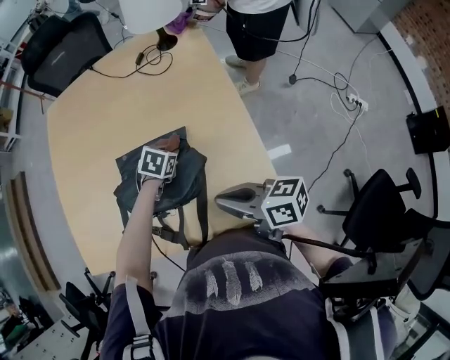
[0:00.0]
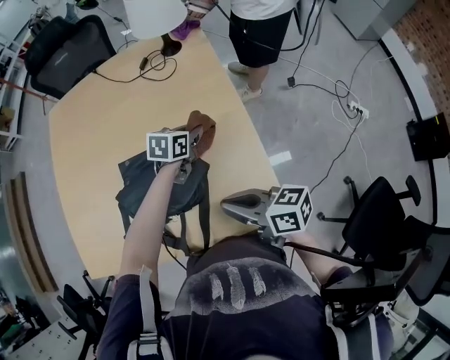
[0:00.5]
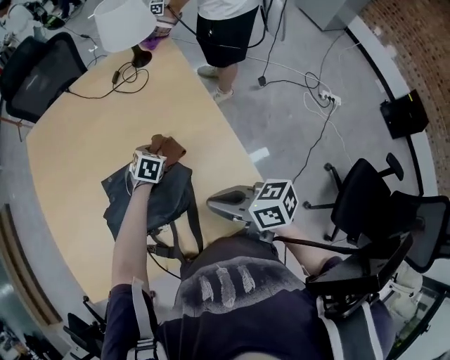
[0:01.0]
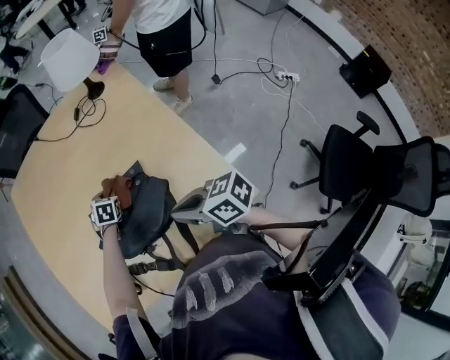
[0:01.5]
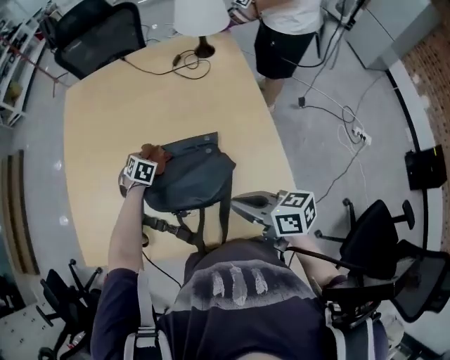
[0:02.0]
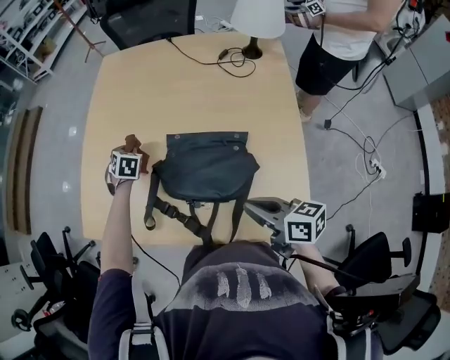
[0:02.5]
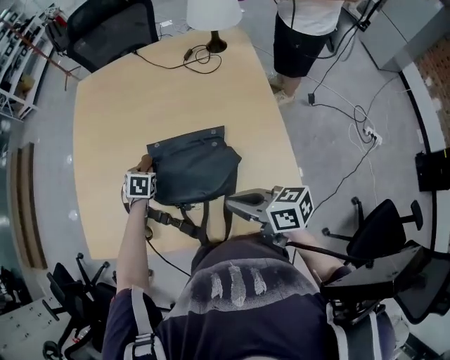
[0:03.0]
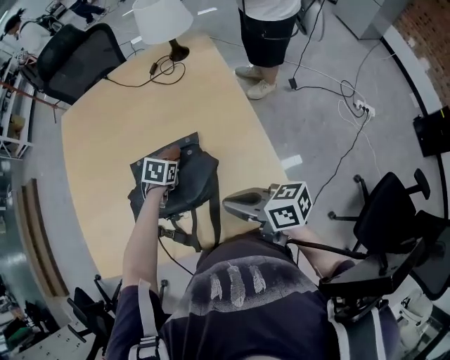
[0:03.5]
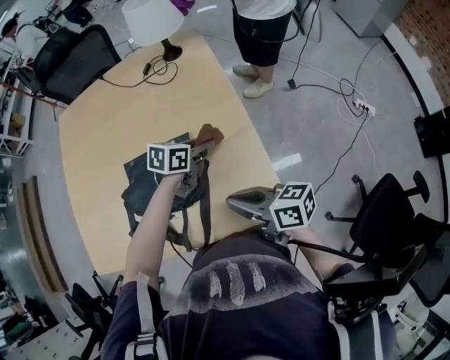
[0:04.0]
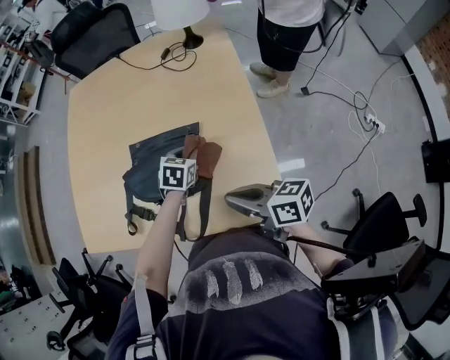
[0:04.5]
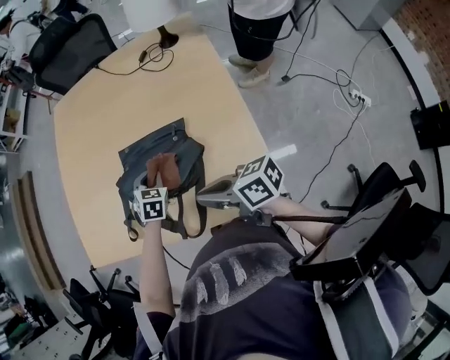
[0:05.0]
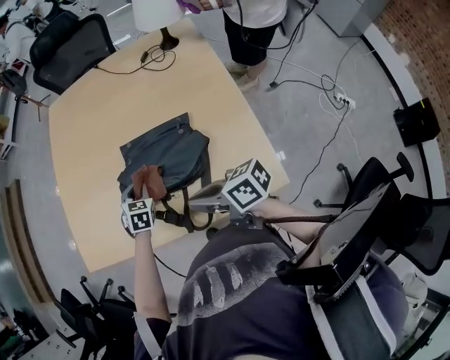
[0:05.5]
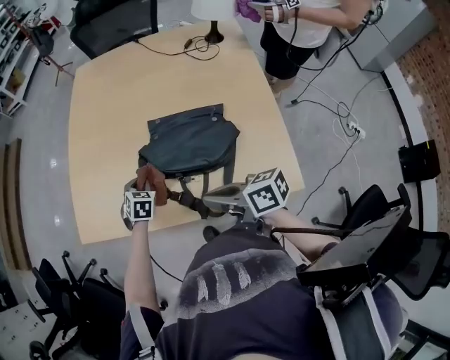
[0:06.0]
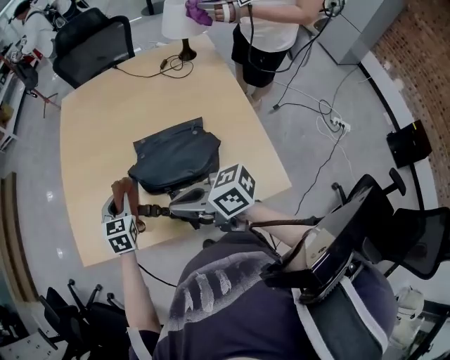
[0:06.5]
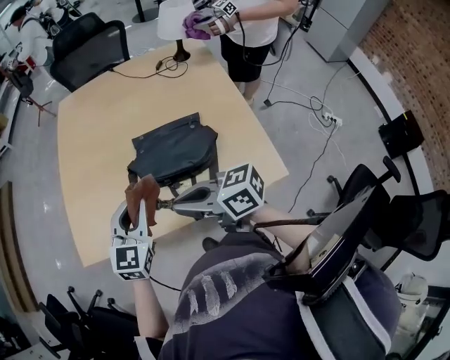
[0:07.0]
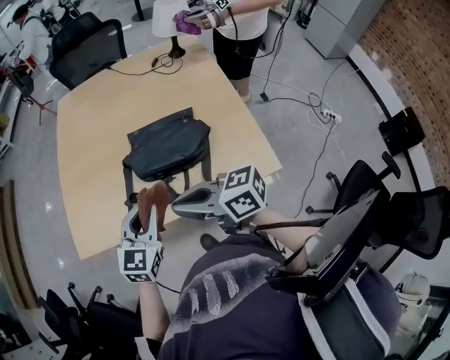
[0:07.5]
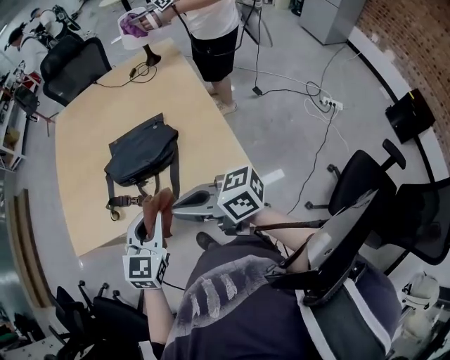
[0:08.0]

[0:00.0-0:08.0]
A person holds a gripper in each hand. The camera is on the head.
0:00.0 to 0:02.0: The left gripper ends up about 25 cm from where it was, and swivels roughly 20 degrees.
0:02.0 to 0:04.0: The right gripper ends up roughly 10 cm from where it was. The left gripper ends up some 40 cm from where it was, and turns by about 50 degrees.
0:04.0 to 0:06.0: The right gripper changes place by about 25 cm, while the left gripper moves approximately 50 cm, and changes its angle by about 50 degrees.
0:06.0 to 0:08.0: The left gripper heads backward, upward and to the right, covering approximately 40 cm, and angles its fingers upward, by roughly 30 degrees, while the right gripper travels backward and upward by about 20 cm, and rotates roughly 20 degrees.

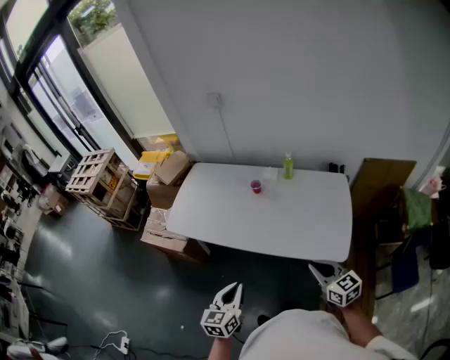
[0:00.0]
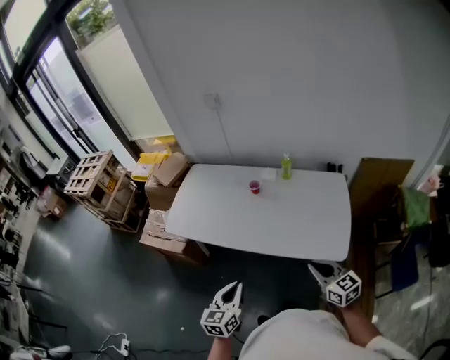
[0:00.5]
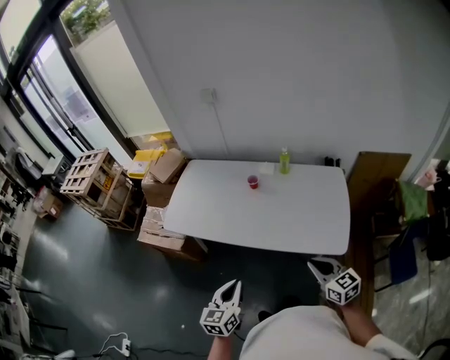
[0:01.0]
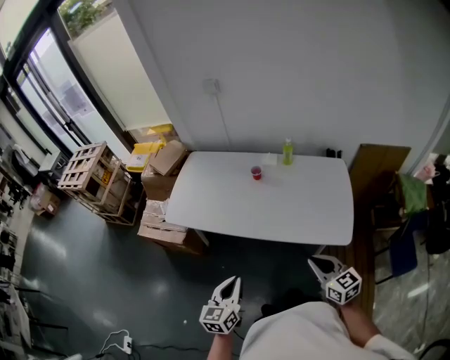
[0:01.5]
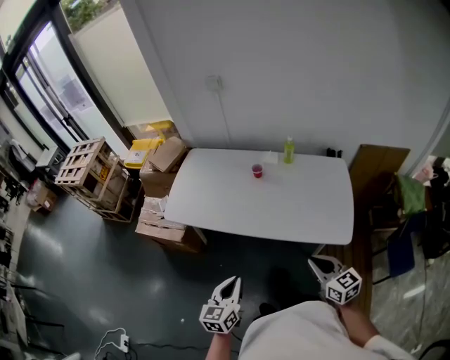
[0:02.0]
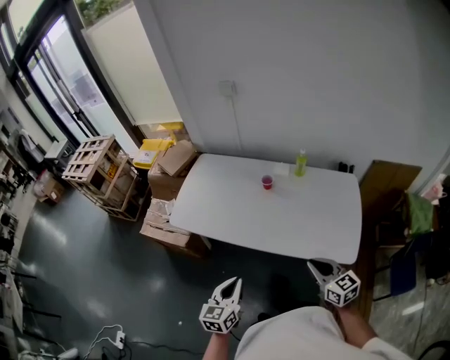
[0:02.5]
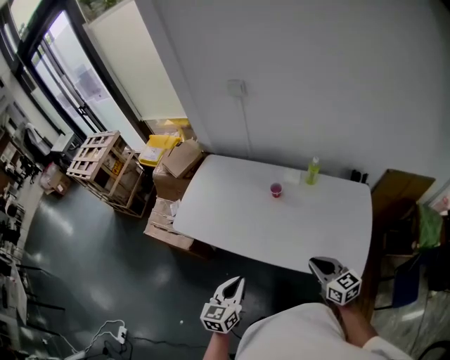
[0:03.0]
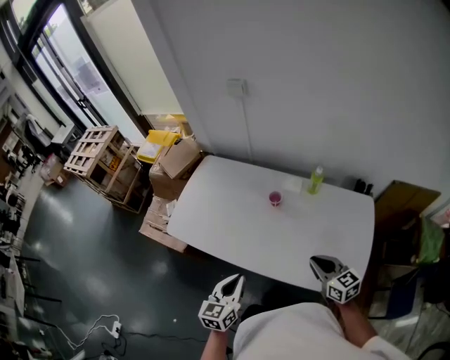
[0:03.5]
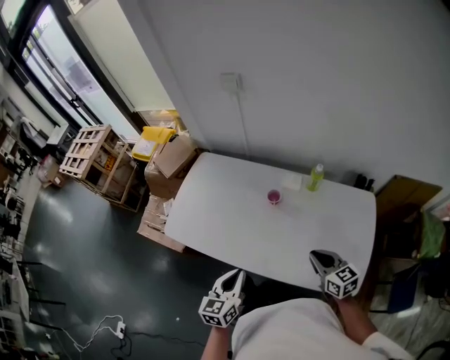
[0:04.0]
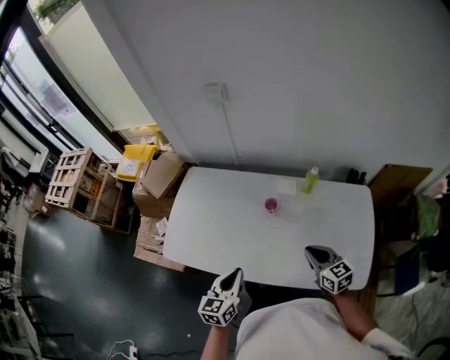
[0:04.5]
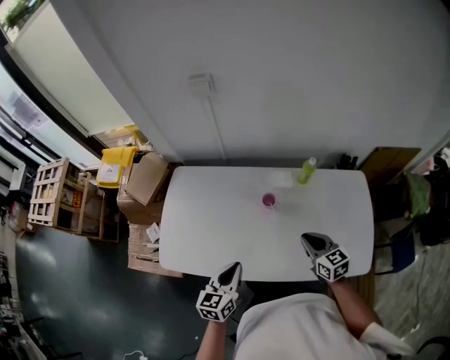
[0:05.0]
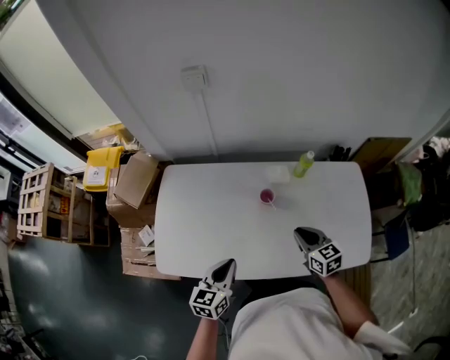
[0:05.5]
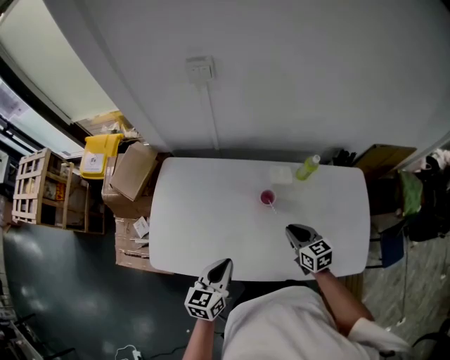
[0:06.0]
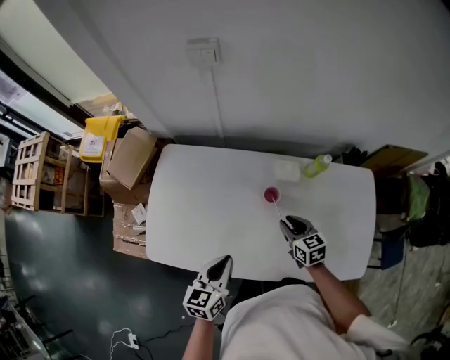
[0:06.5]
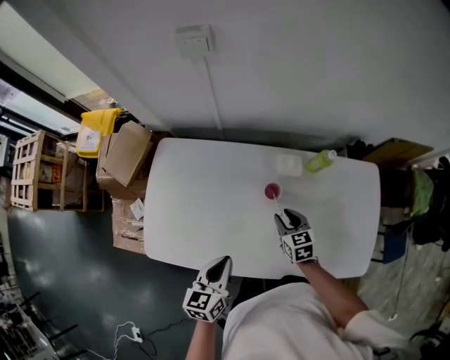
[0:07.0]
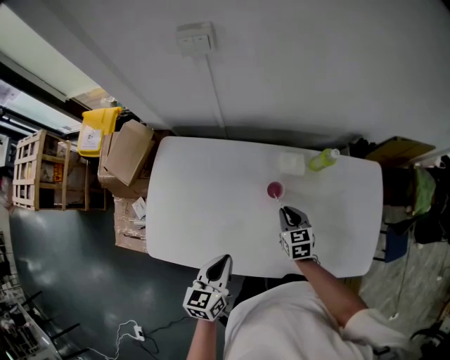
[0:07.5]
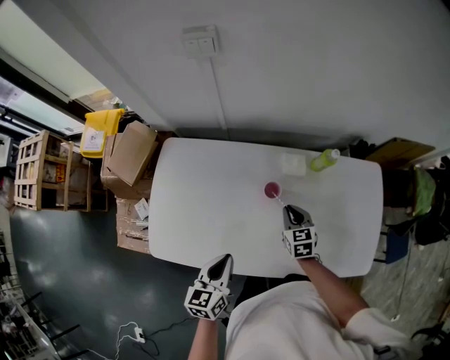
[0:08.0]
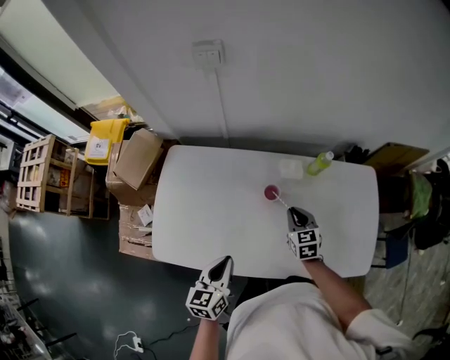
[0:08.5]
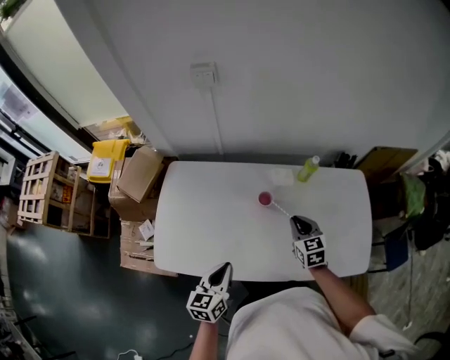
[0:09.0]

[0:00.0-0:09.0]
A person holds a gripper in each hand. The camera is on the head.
0:00.0 to 0:02.0: Both grippers travel together to the left, roughly 5 cm.
0:02.0 to 0:04.5: The grippers both shift forward by roughly 30 cm.
0:04.5 to 0:07.0: The right gripper heads downward, forward and to the left, covering some 25 cm, changes its angle by some 20 degrees, and opens. The left gripper goes some 15 cm forward, downward and to the left.
0:07.0 to 0:09.0: The left gripper shifts roughly 5 cm backward. The right gripper goes some 10 cm upward, and closes.

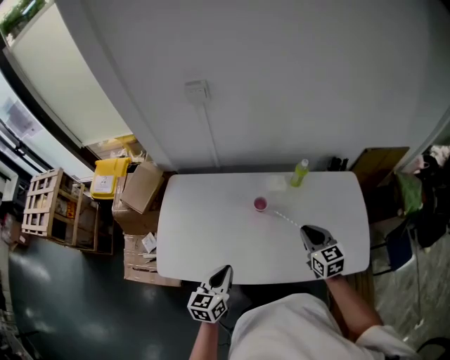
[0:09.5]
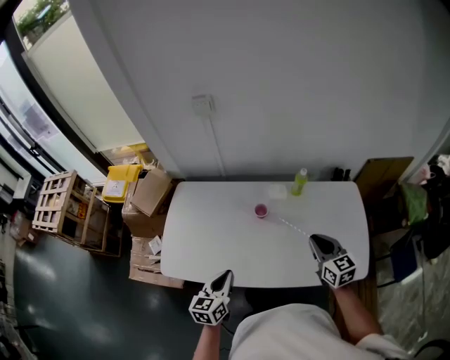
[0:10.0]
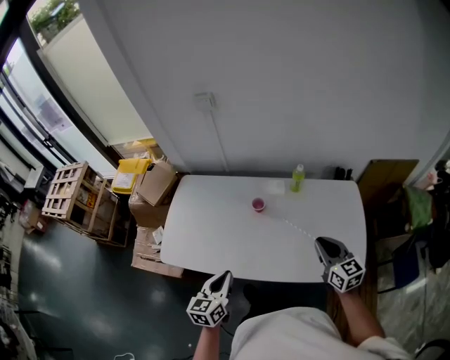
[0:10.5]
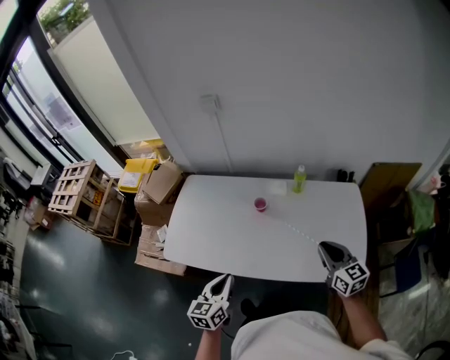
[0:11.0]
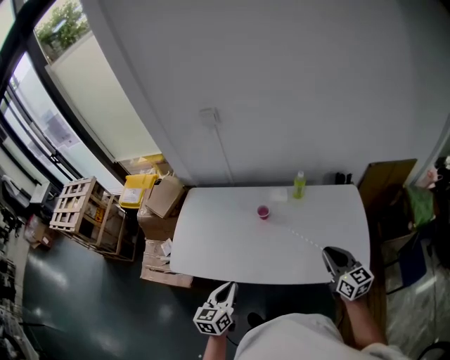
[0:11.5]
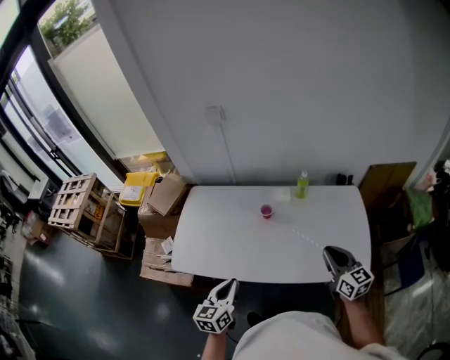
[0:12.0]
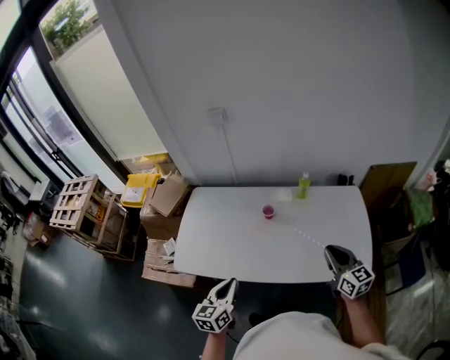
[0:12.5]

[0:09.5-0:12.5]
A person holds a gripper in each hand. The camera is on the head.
0:09.5 to 0:11.0: The grippers both shift backward, to the right and upward by roughly 15 cm.
0:11.0 to 0:12.5: The left gripper changes place by about 5 cm.

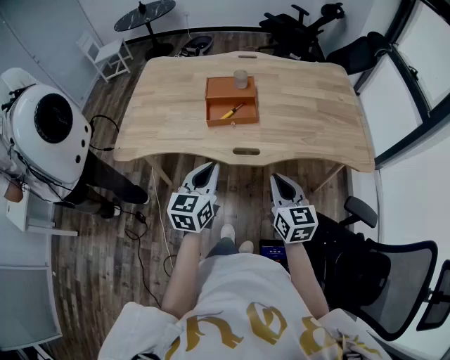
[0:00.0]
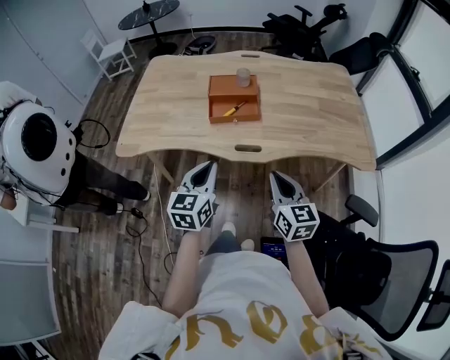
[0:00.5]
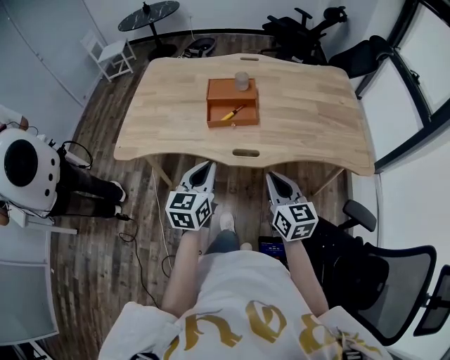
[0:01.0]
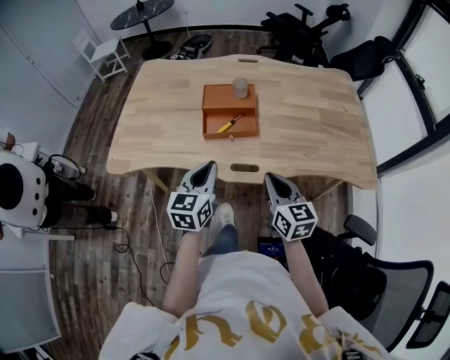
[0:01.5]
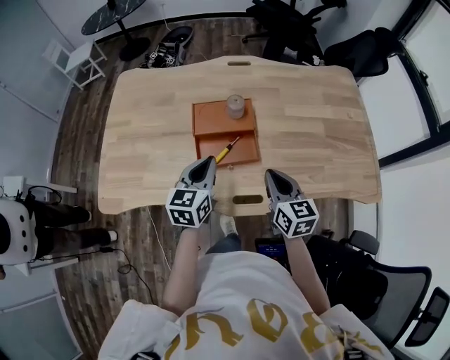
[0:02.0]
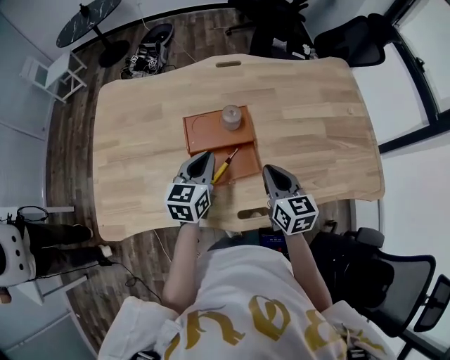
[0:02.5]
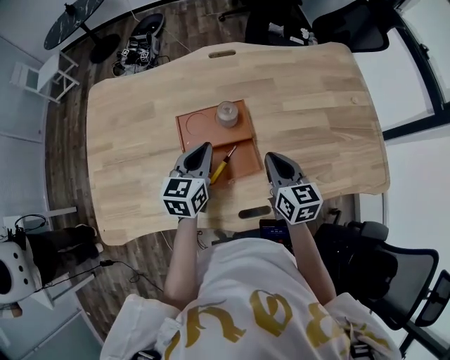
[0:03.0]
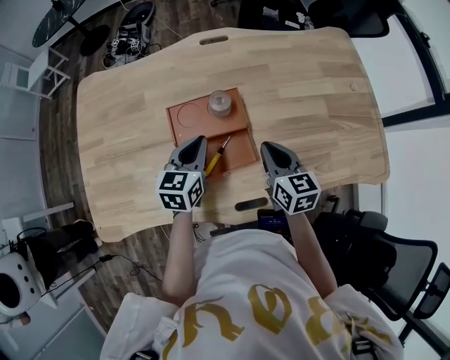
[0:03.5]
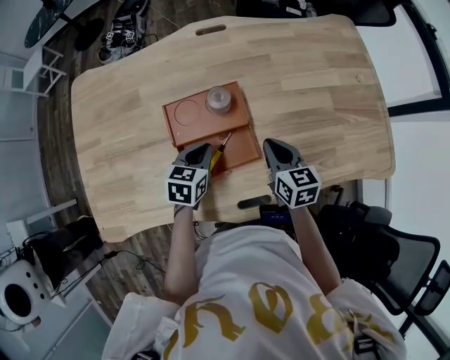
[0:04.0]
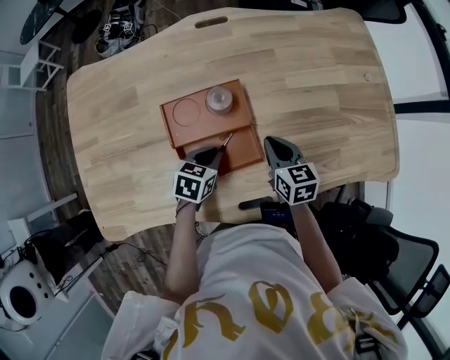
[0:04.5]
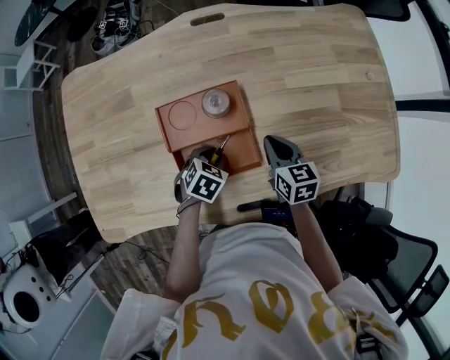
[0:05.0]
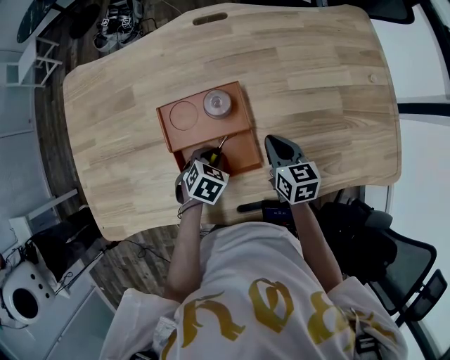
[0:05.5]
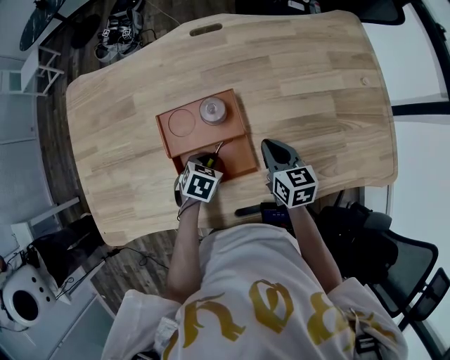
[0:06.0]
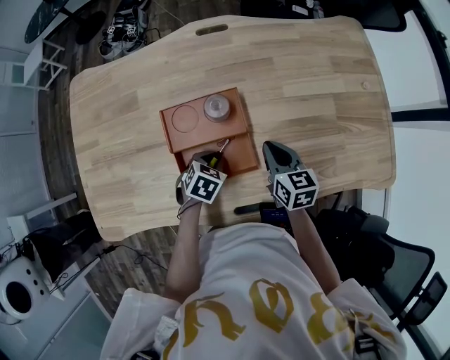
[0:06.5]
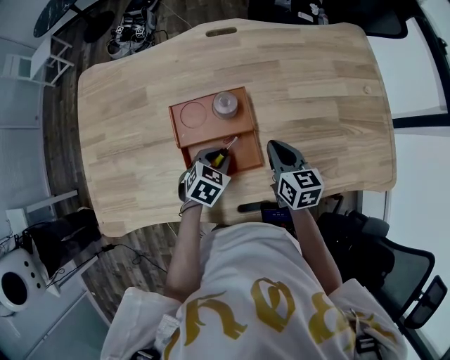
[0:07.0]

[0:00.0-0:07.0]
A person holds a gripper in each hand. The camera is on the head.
0:00.0 to 0:02.0: The grippers both shift forward by roughly 25 cm.
0:02.0 to 0:03.5: The grippers both shift forward and downward by some 15 cm.
0:03.5 to 0:05.0: The left gripper travels downward by approximately 15 cm, angles its fingers downward, by some 40 degrees, and opens. The right gripper moves downward, some 10 cm.
0:05.0 to 0:07.0: The left gripper moves upward, about 5 cm.
